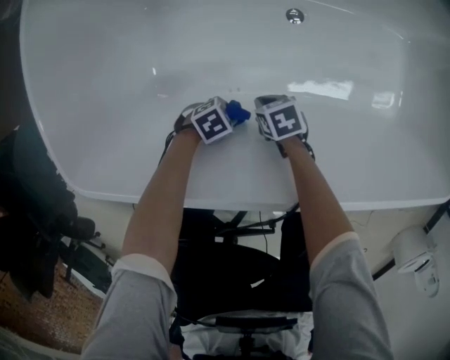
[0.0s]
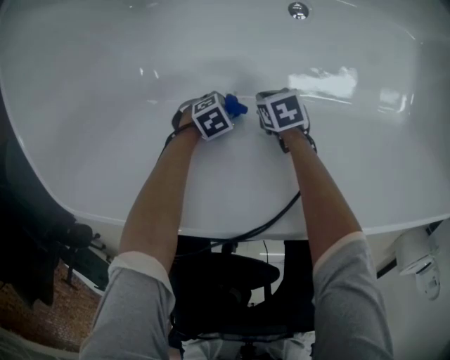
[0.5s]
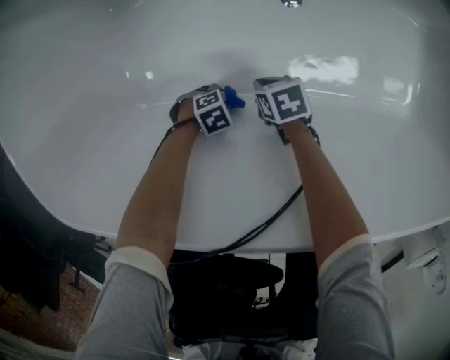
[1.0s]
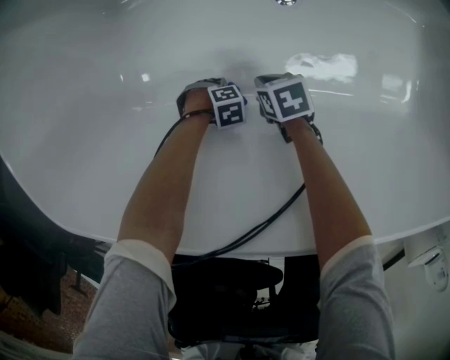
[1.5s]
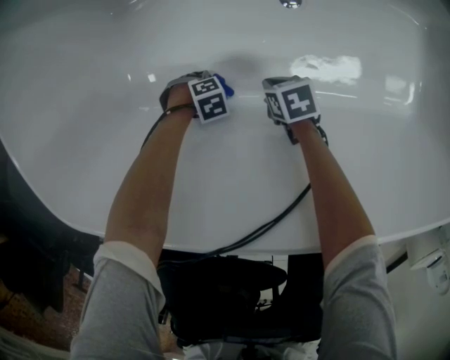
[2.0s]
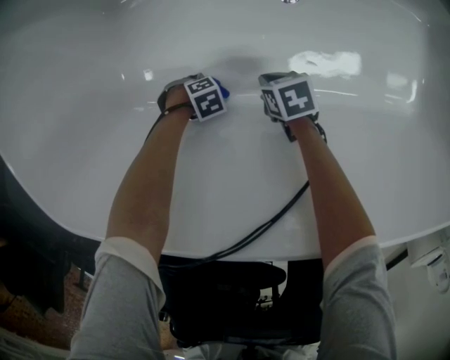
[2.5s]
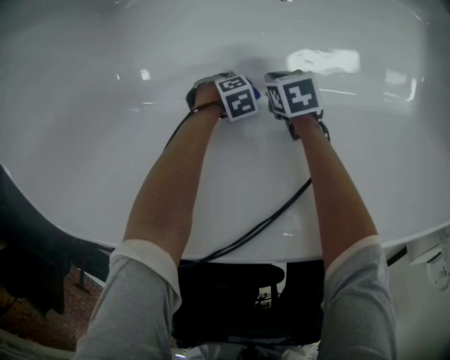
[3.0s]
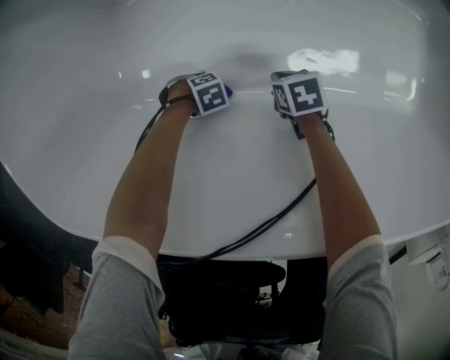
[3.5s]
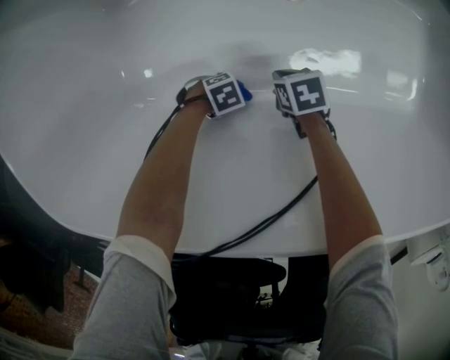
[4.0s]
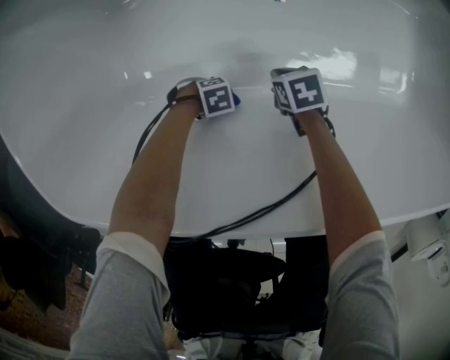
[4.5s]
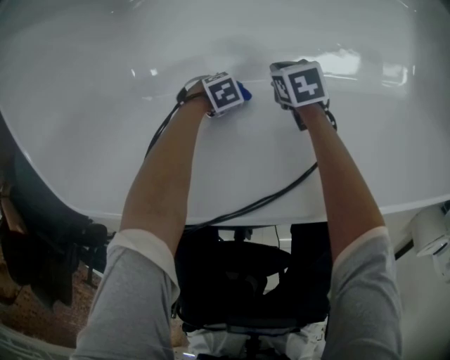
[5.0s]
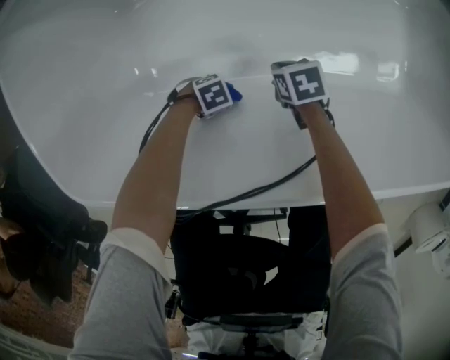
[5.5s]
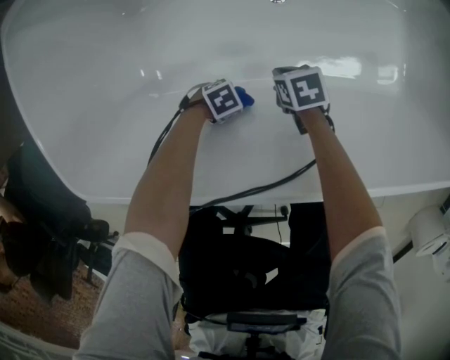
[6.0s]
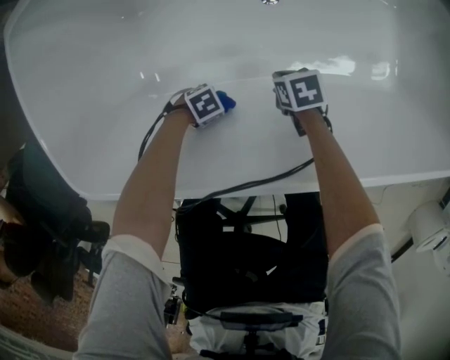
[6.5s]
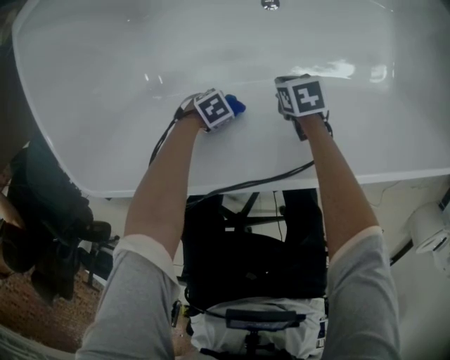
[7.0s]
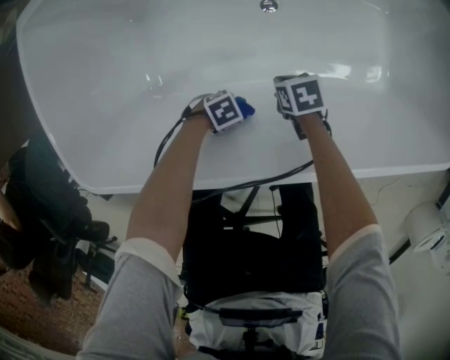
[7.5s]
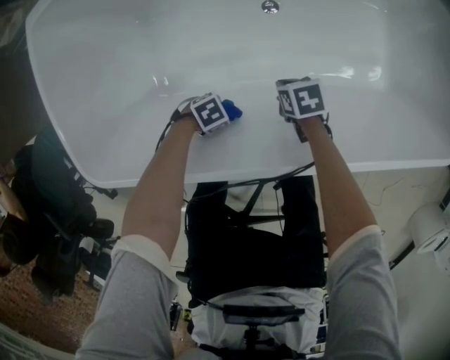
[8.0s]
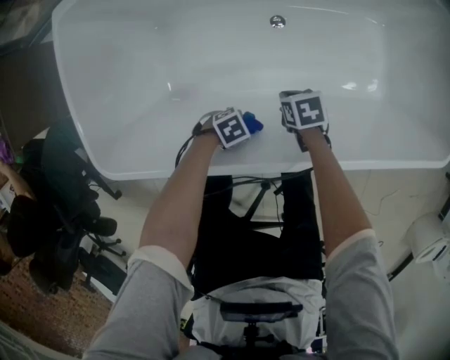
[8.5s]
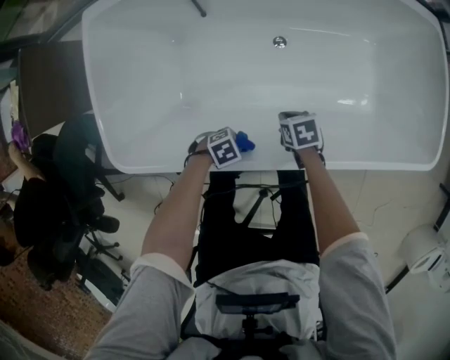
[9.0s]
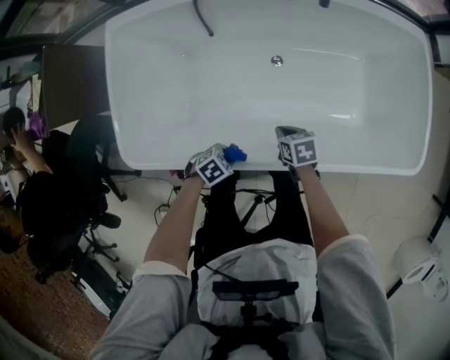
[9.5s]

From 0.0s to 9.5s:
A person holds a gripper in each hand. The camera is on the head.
From 0.0s to 2.0s: The grippers both shift downward by roughly 10 cm. The left gripper turns by approximately 30 degrees.
From 2.0s to 4.0s: The left gripper moves some 10 cm.
From 4.0s to 5.5s: Both grippers move upward, approximately 10 cm.
From 5.5s to 7.5s: The left gripper shifts approximately 10 cm upward and to the left. The right gripper goes roughly 5 cm upward.
From 7.5s to 9.5s: The grippers both shift upward by about 20 cm. The left gripper turns by about 20 degrees.

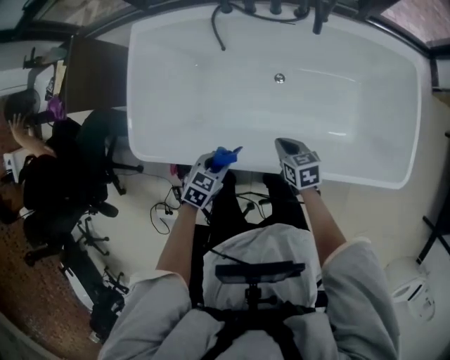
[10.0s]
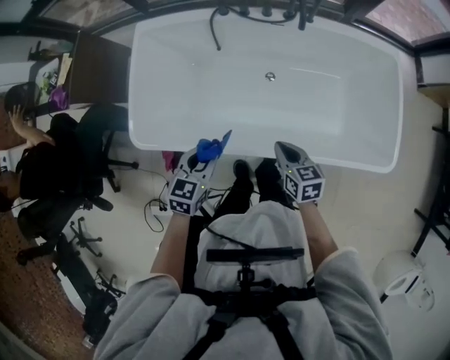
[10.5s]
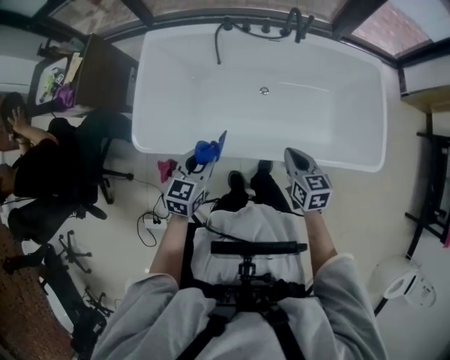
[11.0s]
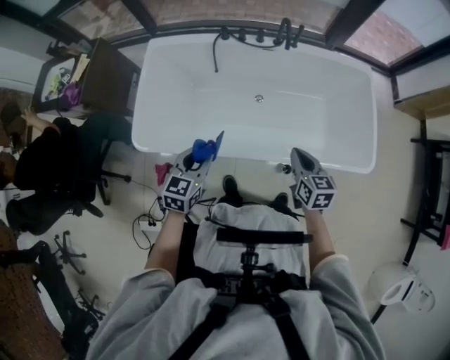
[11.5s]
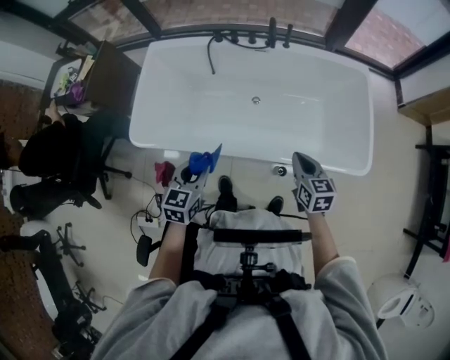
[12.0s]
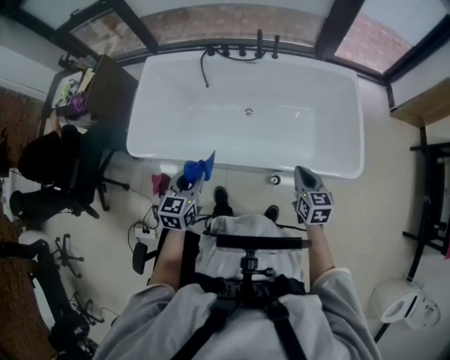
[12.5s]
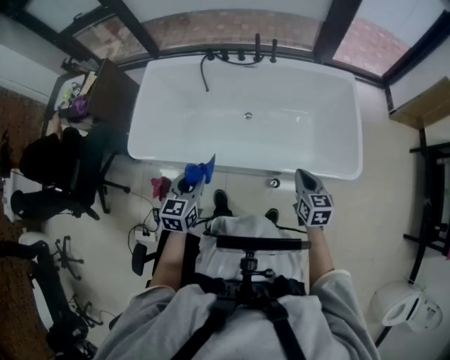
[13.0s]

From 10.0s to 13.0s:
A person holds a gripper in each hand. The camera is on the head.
From 10.0s to 11.5s: The right gripper shifts approximately 25 cm upward and backward, and changes its angle by about 30 degrees. Meanwhile the left gripper goes about 25 cm upward, and turns by roughly 30 degrees.
From 11.5s to 13.0s: The grippers both shift to the right and backward by about 15 cm.

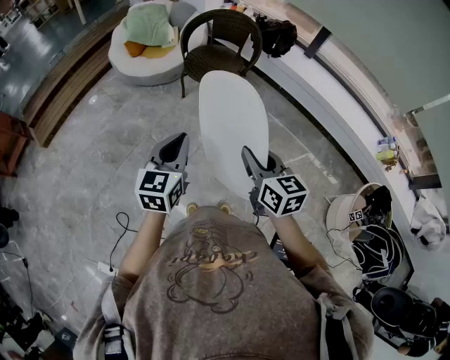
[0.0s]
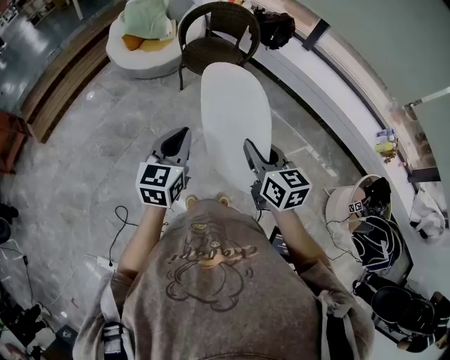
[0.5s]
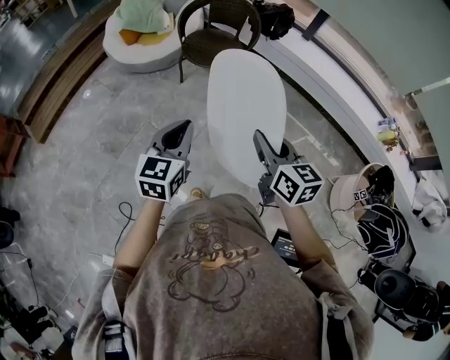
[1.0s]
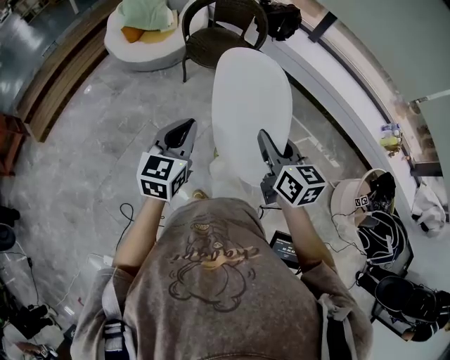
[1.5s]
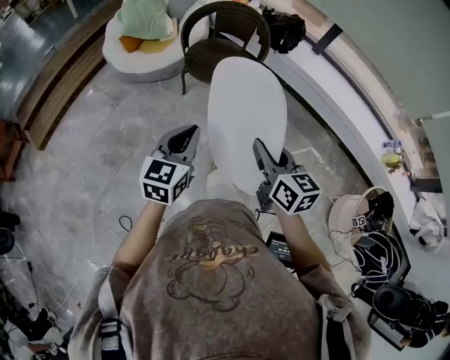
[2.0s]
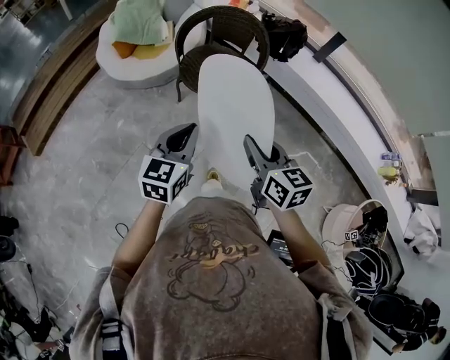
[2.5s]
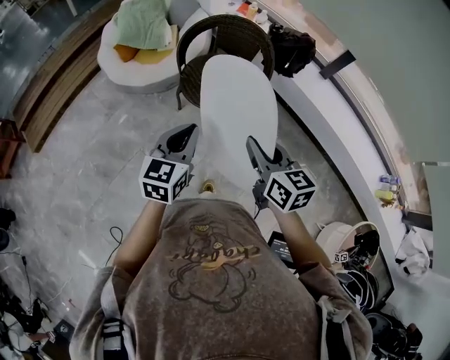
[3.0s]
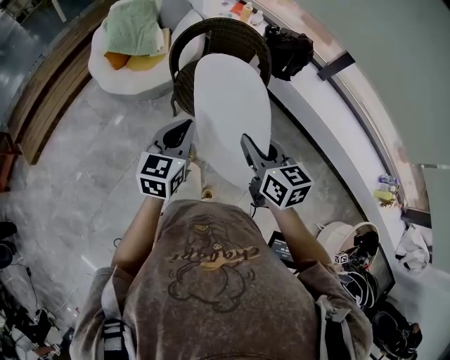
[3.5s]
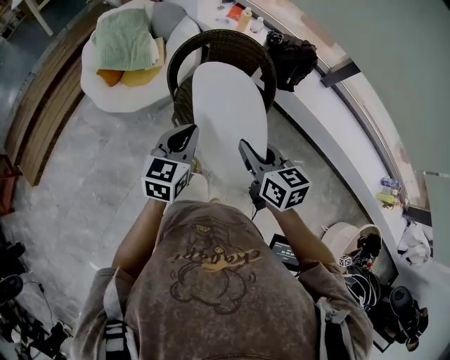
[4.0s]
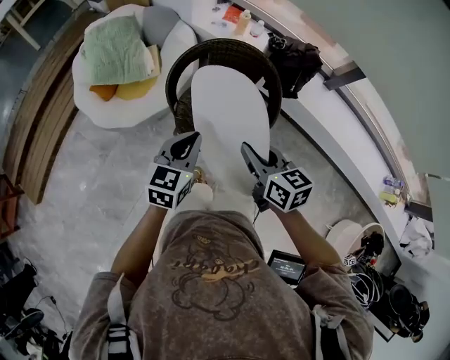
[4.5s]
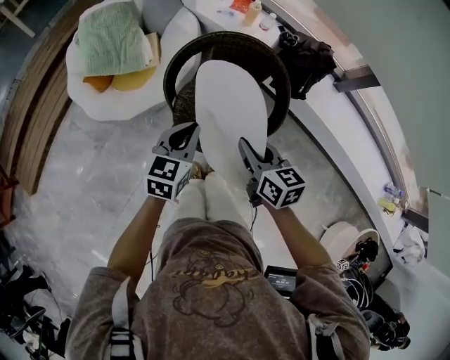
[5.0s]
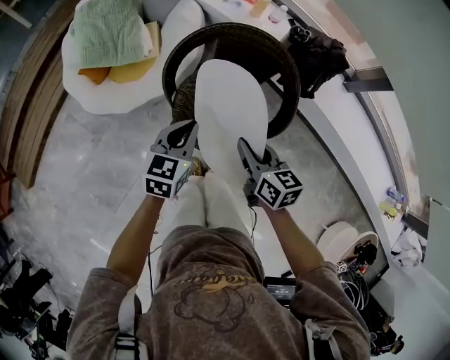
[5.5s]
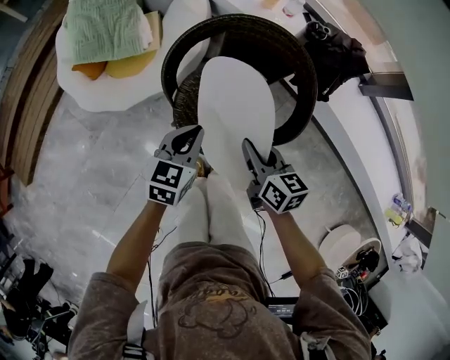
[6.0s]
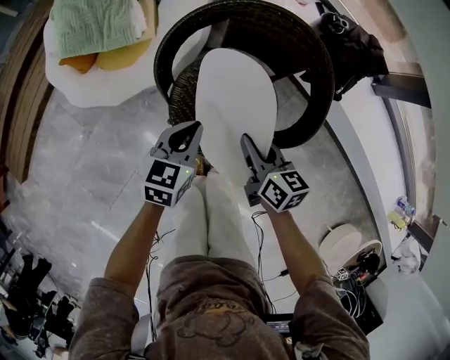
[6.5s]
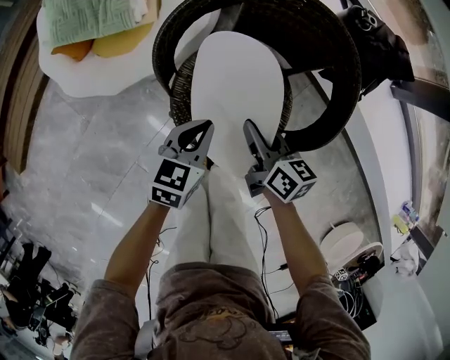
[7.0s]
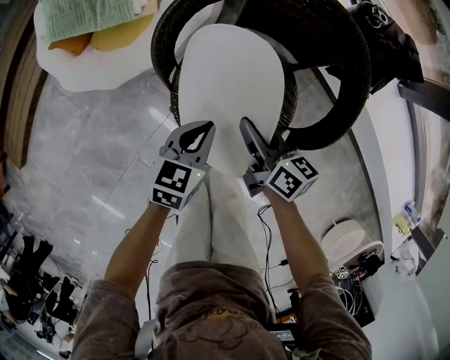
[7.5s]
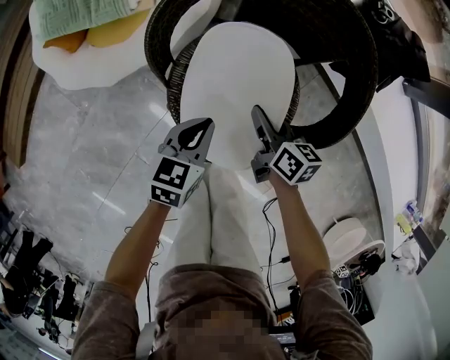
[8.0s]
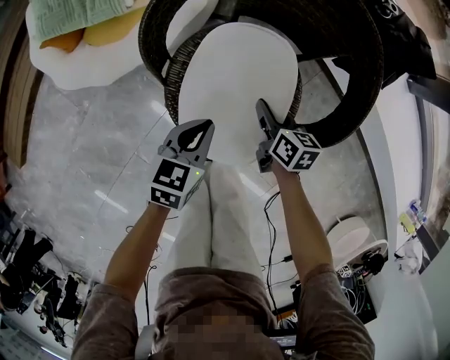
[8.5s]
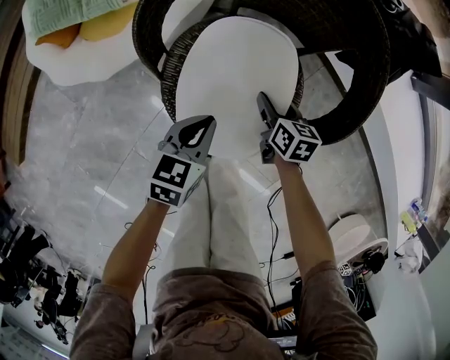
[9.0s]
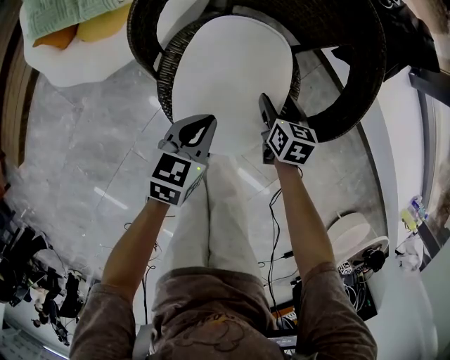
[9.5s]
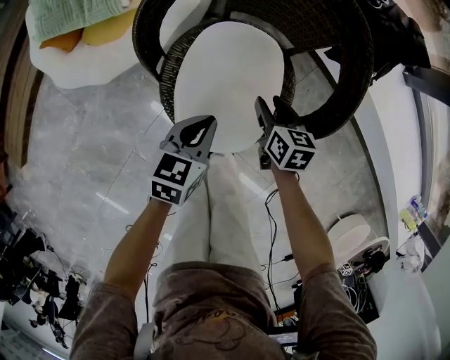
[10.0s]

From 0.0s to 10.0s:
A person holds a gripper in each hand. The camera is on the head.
From 0.0s to 2.0s: The two grippers go roughly 10 cm forward.
From 2.0s to 4.0s: Both grippers are carried forward, about 40 cm.
From 4.0s to 6.0s: The grippers both shift downward and forward by approximately 30 cm.
From 6.0s to 8.0s: The two grippers go some 20 cm downward.
From 8.0s to 10.0s: The right gripper is displaced to the right by about 5 cm, and opens up.

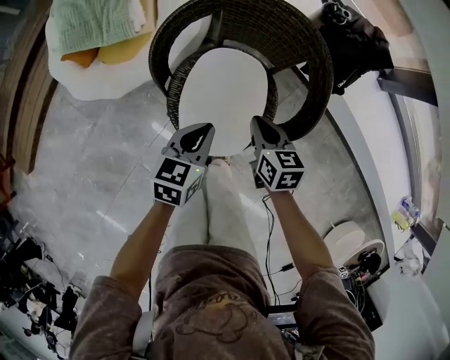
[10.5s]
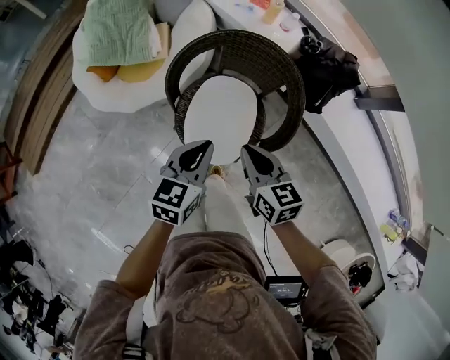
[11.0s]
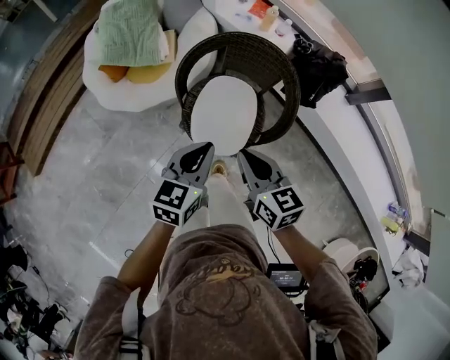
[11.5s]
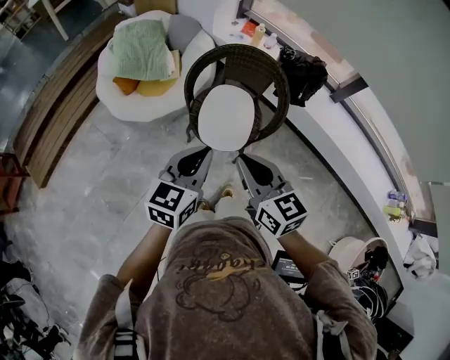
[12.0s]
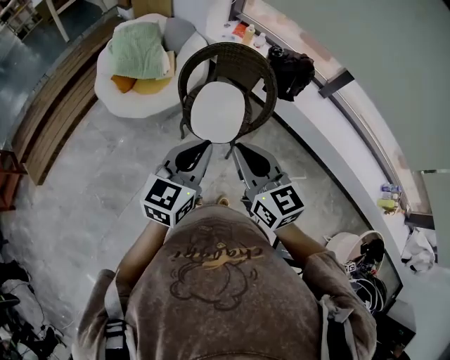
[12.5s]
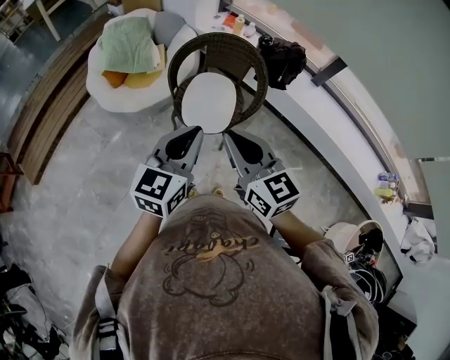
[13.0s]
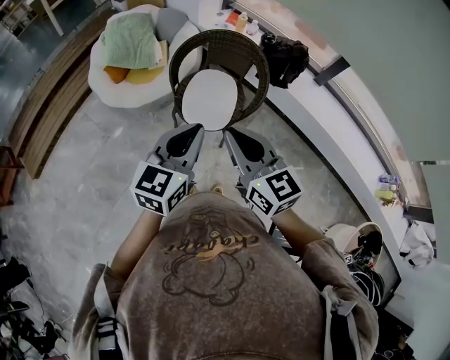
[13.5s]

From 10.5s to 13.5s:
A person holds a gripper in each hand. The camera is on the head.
From 10.5s to 12.0s: The grippers both shift upward and backward by about 40 cm. The right gripper turns by roughly 30 degrees, while the left gripper rotates some 20 degrees.
From 12.0s to 13.5s: The right gripper travels backward and upward by roughly 10 cm. The left gripper travels backward, upward and to the right by roughly 10 cm.

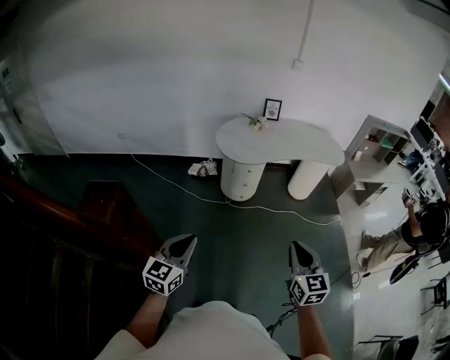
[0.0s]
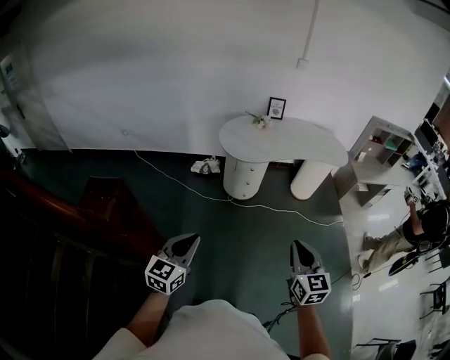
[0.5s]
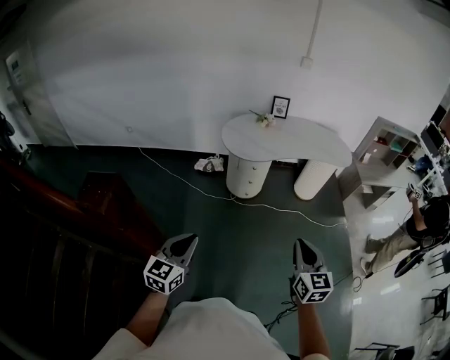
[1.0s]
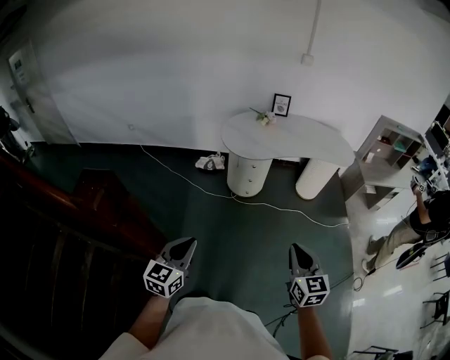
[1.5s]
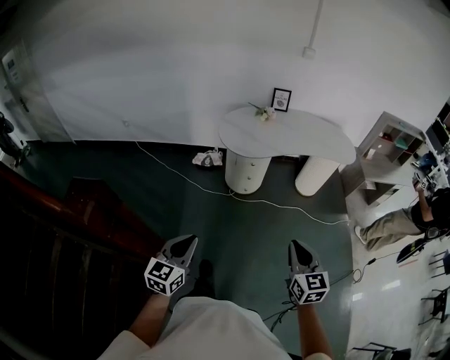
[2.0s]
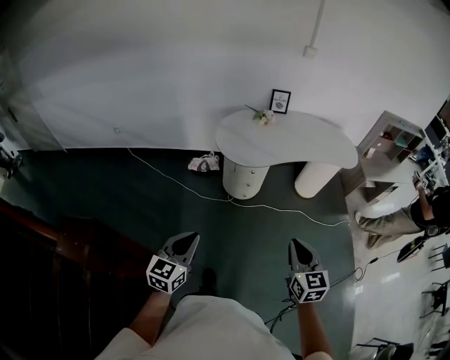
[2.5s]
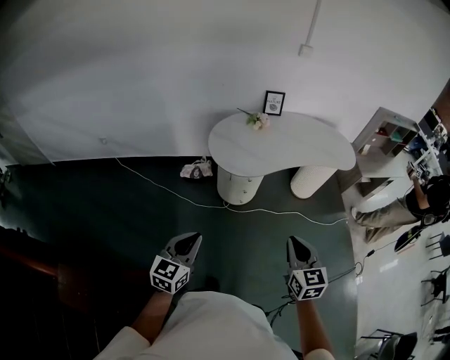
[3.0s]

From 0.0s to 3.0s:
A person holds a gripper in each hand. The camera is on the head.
From 0.0s to 1.5s: Both grippers travel together to the right, approximately 5 cm.
From 1.5s to 3.0s: The right gripper shifts about 25 cm forward and to the left, while the left gripper shifts roughly 25 cm forward.
